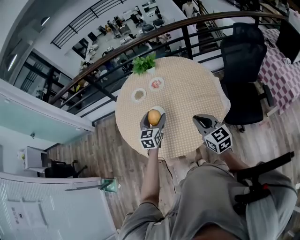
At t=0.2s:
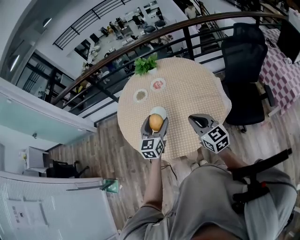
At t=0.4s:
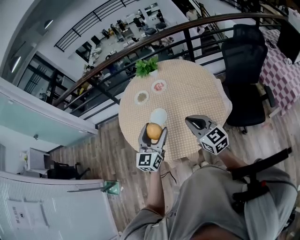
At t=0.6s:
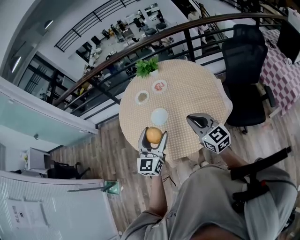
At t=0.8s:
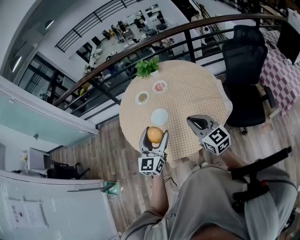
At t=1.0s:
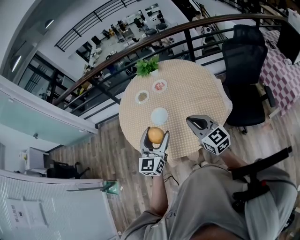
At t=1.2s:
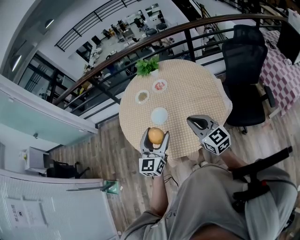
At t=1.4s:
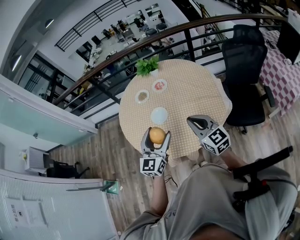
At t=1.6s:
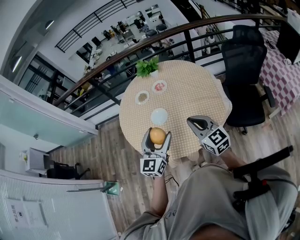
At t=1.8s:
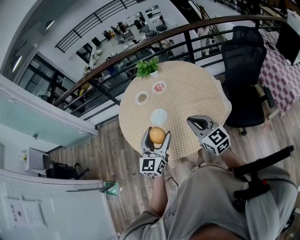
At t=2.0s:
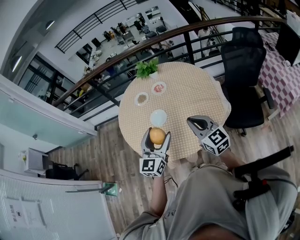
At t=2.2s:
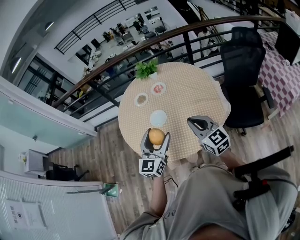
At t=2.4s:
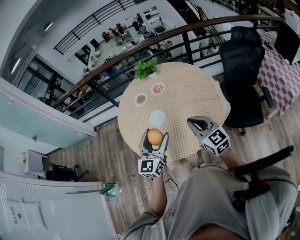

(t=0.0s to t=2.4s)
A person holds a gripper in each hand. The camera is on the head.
t=0.0s - t=1.2s: The left gripper travels backward and upward by roughly 15 cm. Meanwhile the right gripper shifts by approximately 5 cm.
t=1.2s - t=2.4s: The grippers move only a little.

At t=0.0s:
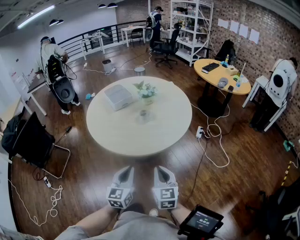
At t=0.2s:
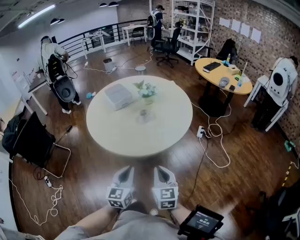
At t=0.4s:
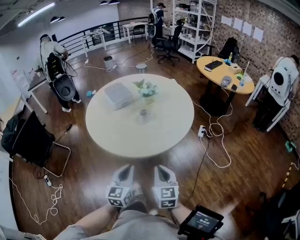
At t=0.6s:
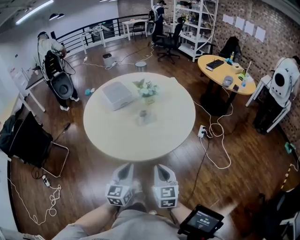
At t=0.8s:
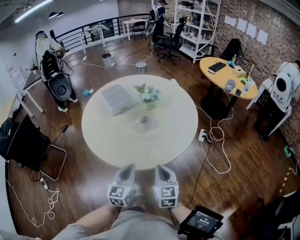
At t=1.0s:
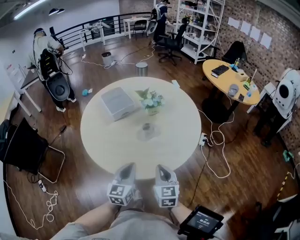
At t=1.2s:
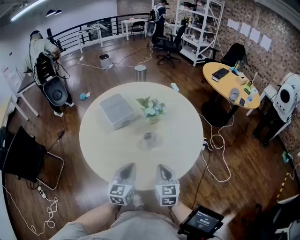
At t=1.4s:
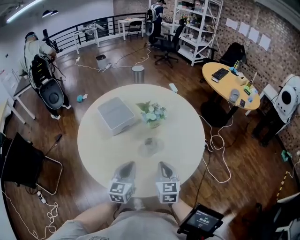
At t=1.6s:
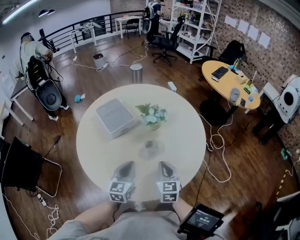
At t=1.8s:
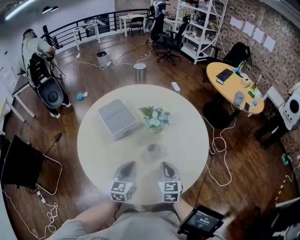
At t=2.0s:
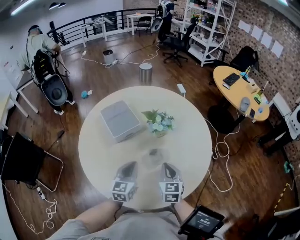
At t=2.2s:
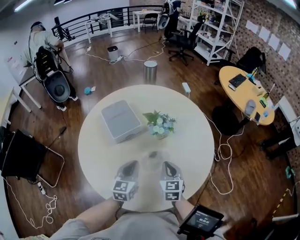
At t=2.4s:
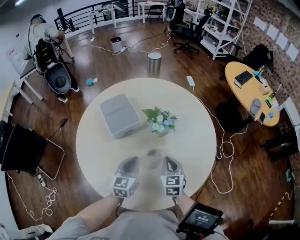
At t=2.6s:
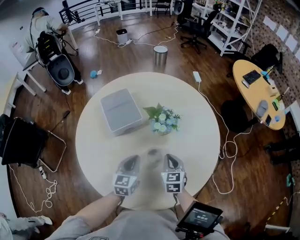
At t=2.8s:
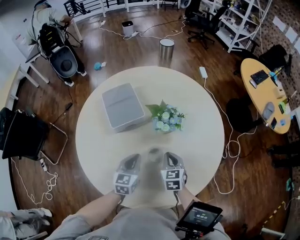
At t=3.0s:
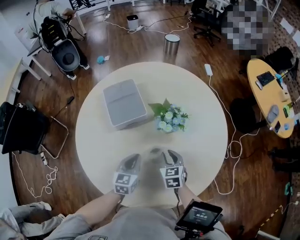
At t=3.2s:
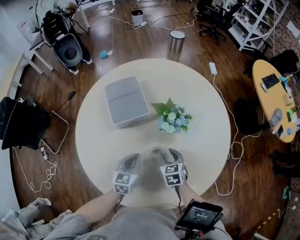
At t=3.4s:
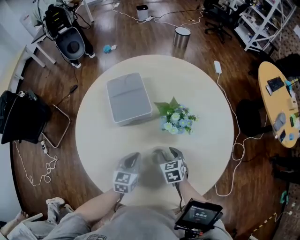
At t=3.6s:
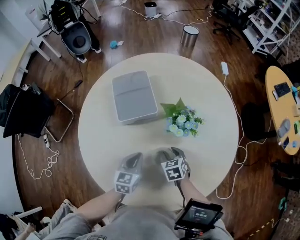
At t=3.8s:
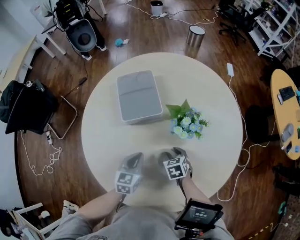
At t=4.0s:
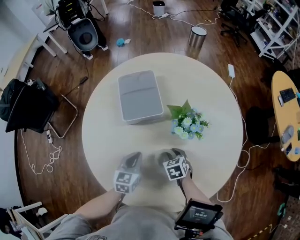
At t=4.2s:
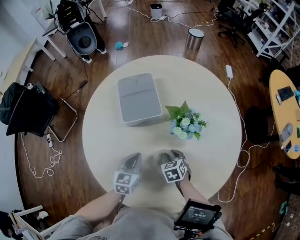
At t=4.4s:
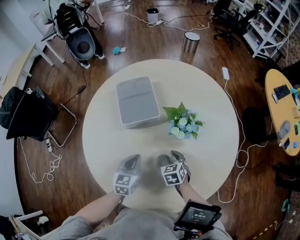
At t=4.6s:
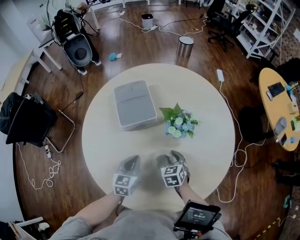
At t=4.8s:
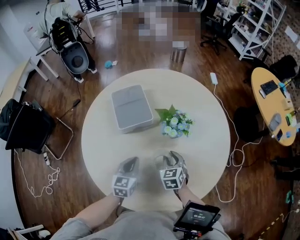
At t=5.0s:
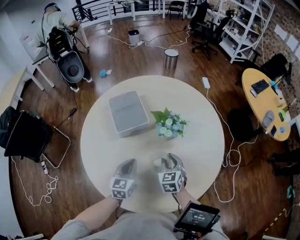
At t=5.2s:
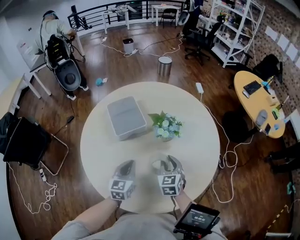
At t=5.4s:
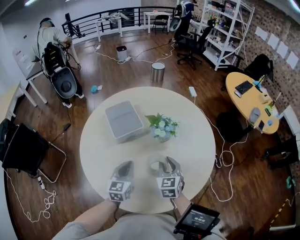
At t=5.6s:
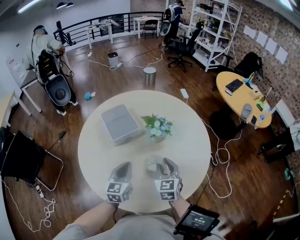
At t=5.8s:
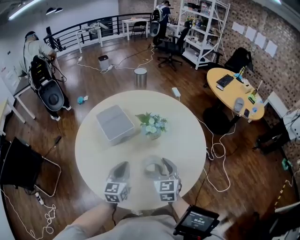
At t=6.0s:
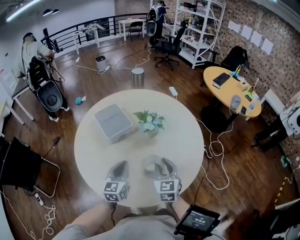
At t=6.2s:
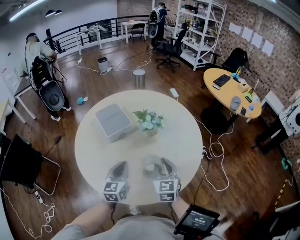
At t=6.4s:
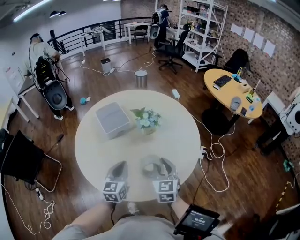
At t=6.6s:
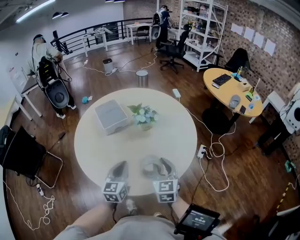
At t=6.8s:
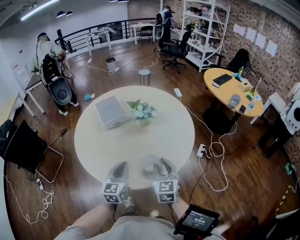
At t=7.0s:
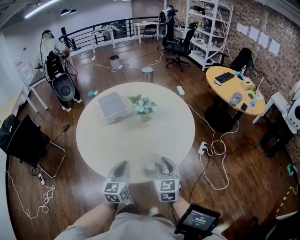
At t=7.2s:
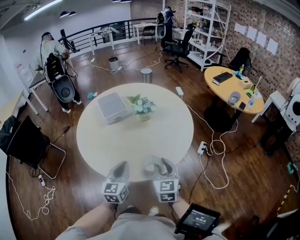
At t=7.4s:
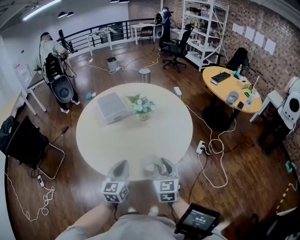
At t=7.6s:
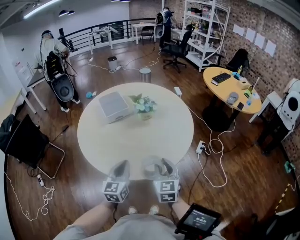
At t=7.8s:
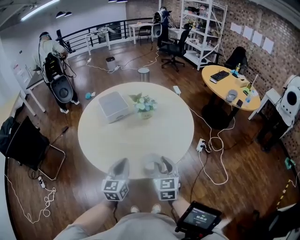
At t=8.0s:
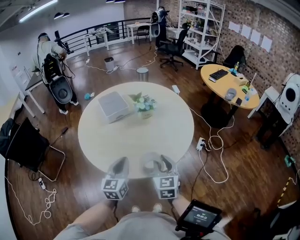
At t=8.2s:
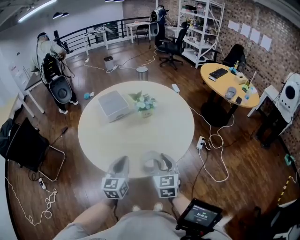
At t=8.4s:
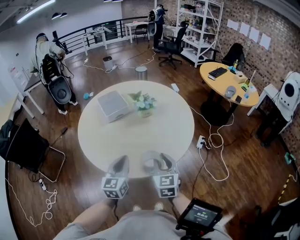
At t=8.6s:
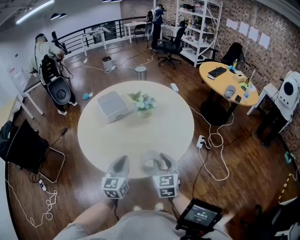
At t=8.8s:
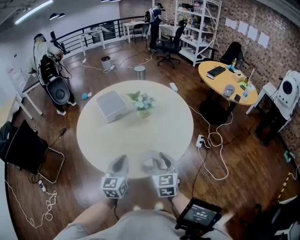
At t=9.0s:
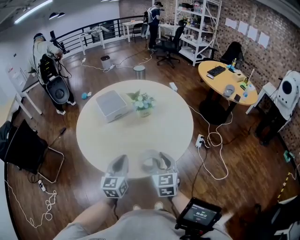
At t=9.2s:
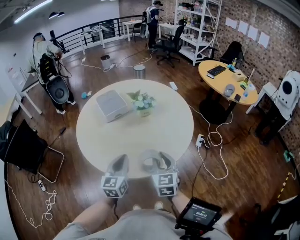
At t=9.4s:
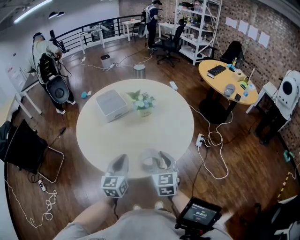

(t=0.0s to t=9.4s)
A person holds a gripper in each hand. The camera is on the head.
t=0.0s - t=1.6s: The two grippers go some 35 cm forward.
t=1.6s - t=3.2s: The left gripper heads downward and forward, covering approximately 15 cm, and turns by some 20 degrees; the right gripper goes about 25 cm forward and downward, swivels roughly 40 degrees, and opens up.
t=3.2s - t=4.8s: The grippers make only small movements.
t=4.8s - t=6.2s: The left gripper is displaced upward and backward by some 15 cm. Meanwhile the right gripper is displaced upward and backward by about 20 cm, and swivels approximately 30 degrees.
t=6.2s - t=7.8s: The two grippers go some 15 cm backward and to the right.
t=7.8s - t=9.4s: The grippers move only a little.

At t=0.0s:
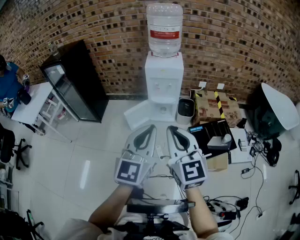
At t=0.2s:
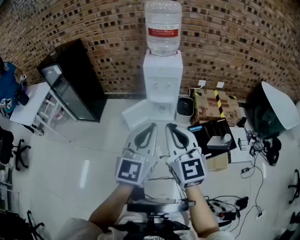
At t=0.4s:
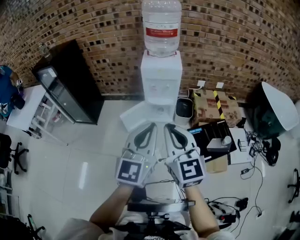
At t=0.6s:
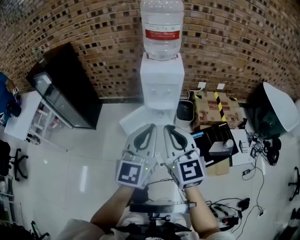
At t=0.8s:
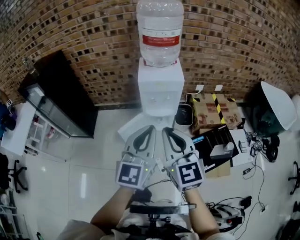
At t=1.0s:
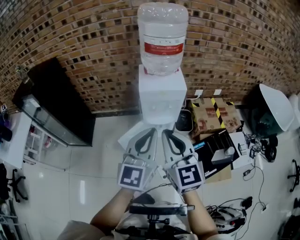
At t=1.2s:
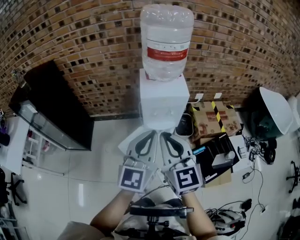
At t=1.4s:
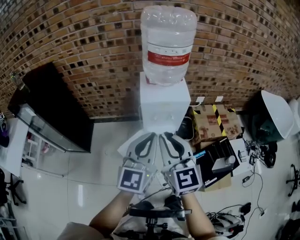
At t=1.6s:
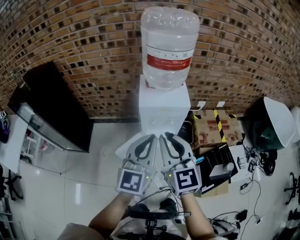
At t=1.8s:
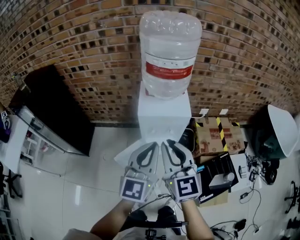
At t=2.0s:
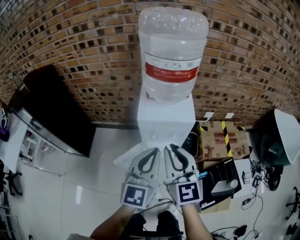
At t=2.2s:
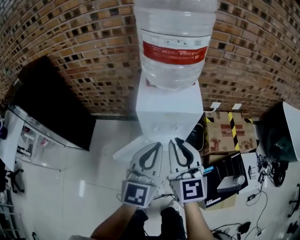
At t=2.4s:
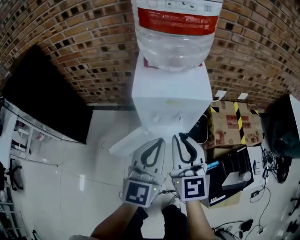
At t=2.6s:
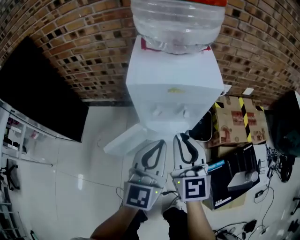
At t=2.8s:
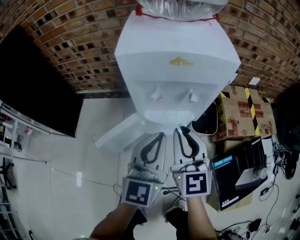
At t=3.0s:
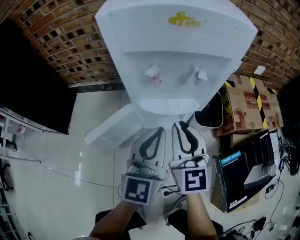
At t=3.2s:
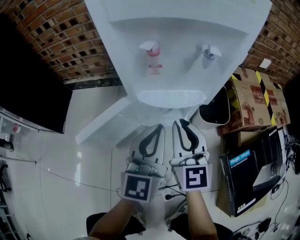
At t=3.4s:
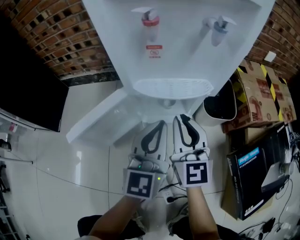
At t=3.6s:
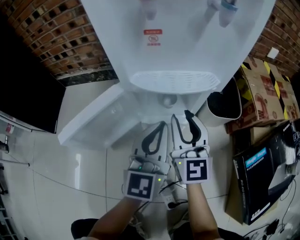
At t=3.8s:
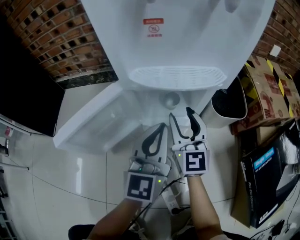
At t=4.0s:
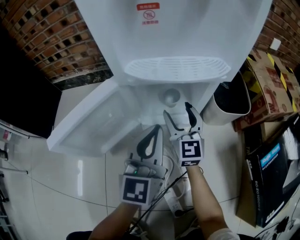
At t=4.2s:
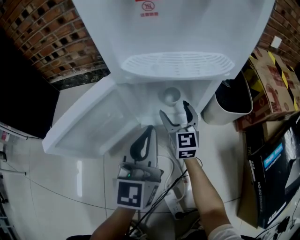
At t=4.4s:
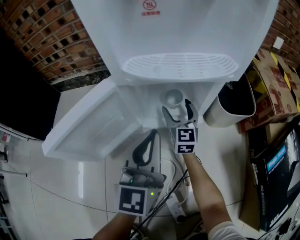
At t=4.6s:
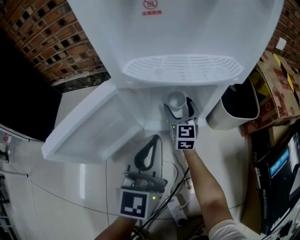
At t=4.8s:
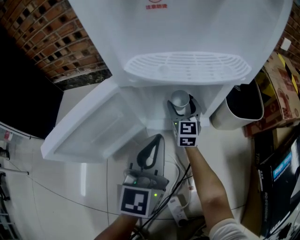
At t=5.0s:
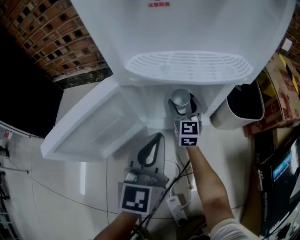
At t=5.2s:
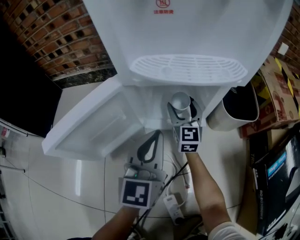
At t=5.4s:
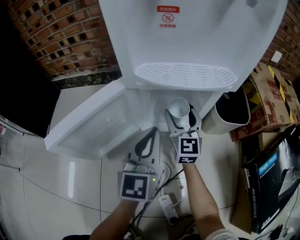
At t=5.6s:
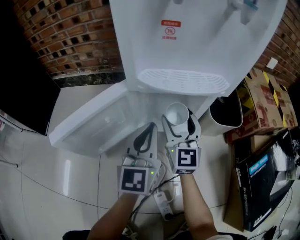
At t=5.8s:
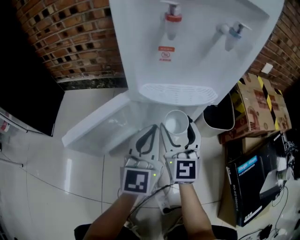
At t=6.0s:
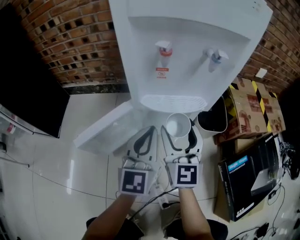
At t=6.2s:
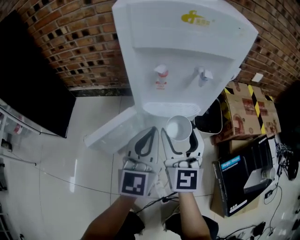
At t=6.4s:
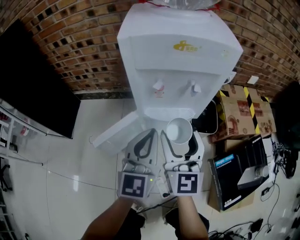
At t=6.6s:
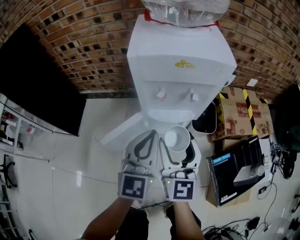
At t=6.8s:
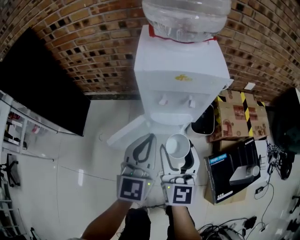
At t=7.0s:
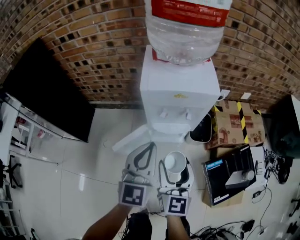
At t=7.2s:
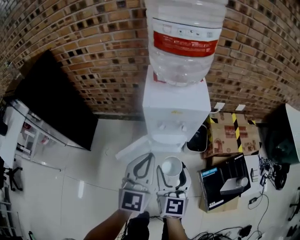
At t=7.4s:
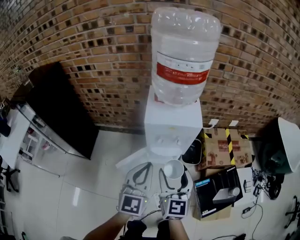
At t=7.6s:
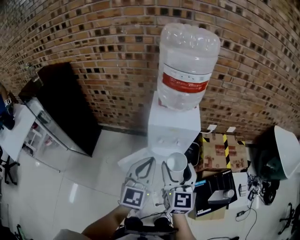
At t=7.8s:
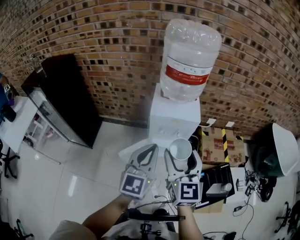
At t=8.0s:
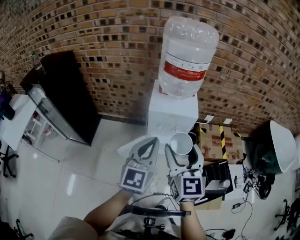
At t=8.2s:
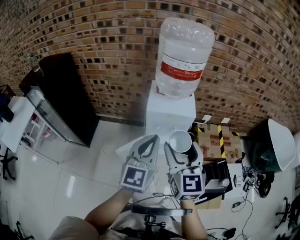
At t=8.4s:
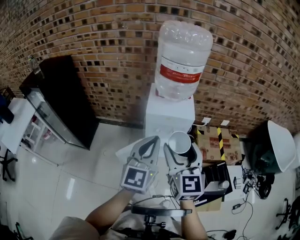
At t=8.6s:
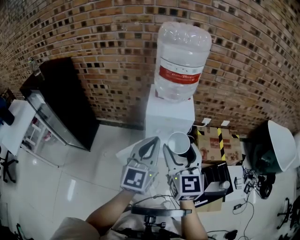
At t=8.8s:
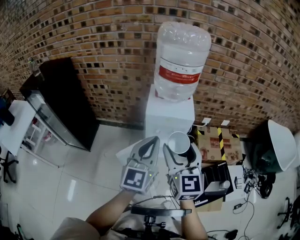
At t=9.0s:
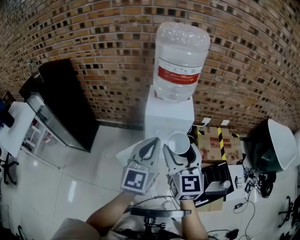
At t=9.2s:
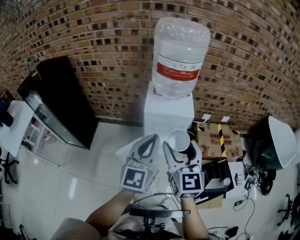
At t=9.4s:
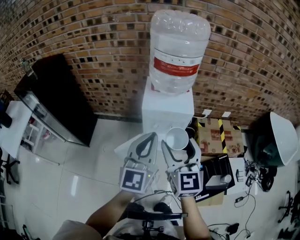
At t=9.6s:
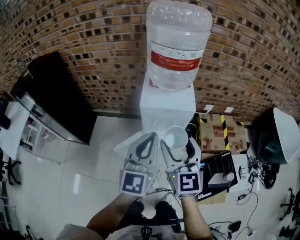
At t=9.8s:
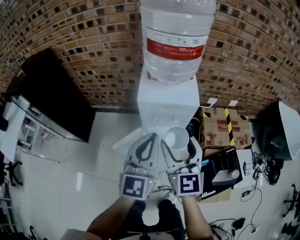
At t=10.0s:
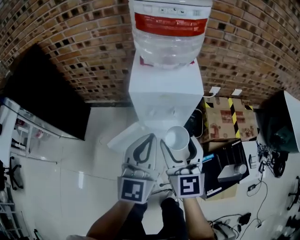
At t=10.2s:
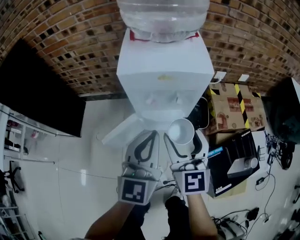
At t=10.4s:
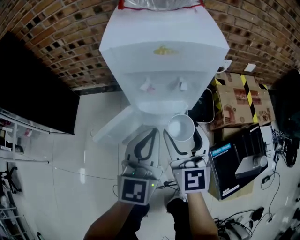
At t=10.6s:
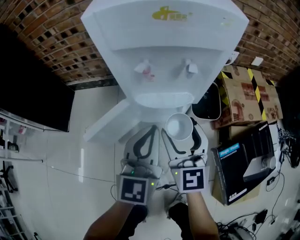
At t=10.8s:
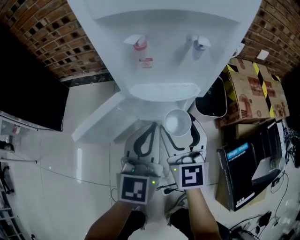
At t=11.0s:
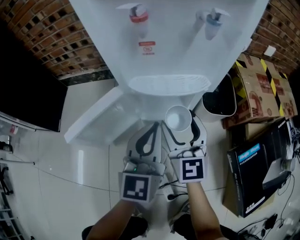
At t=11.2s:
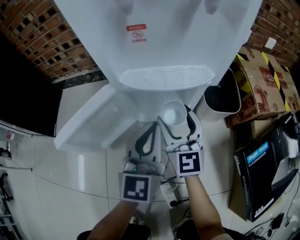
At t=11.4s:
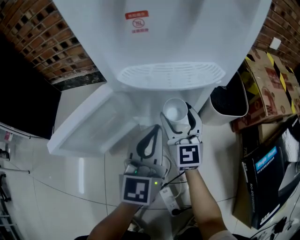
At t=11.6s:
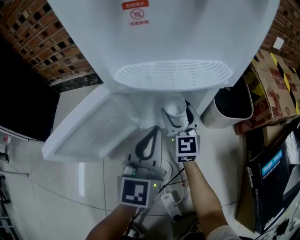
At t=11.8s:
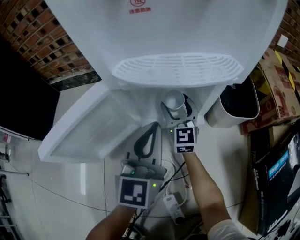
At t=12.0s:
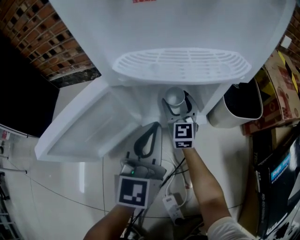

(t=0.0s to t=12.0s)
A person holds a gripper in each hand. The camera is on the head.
t=0.0s - t=1.6s: Both grippers travel together forward, roughly 35 cm.
t=1.6s - t=3.0s: Both grippers move downward, approximately 40 cm.
t=3.0s - t=4.4s: The left gripper moves downward, some 25 cm. Meanwhile the right gripper shifts roughly 40 cm downward and forward, and opens.
t=4.4s - t=6.0s: The right gripper shifts roughly 30 cm upward and backward; the left gripper shifts about 15 cm upward.
t=6.0s - t=7.6s: Both grippers travel together upward, some 50 cm.
t=7.6s - t=9.0s: Both grippers travel together upward, roughly 10 cm.
t=9.0s - t=10.4s: The two grippers go some 35 cm downward.
t=10.4s - t=12.0s: The left gripper is displaced downward by some 40 cm, while the right gripper goes some 50 cm downward and forward.
